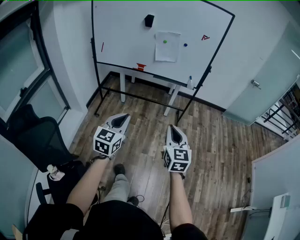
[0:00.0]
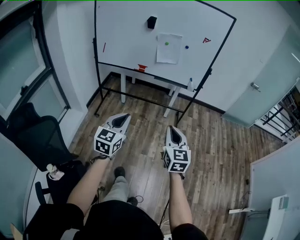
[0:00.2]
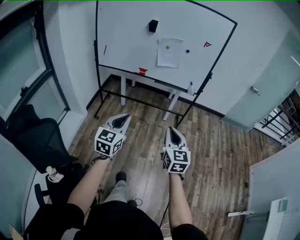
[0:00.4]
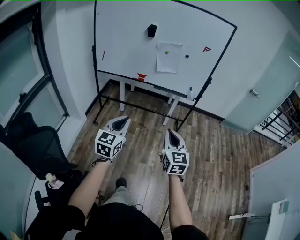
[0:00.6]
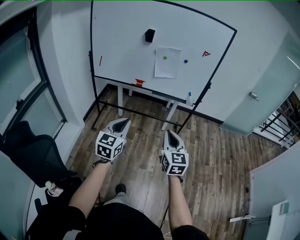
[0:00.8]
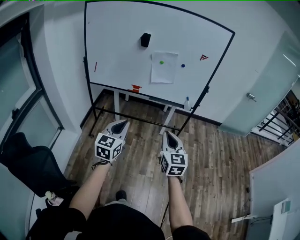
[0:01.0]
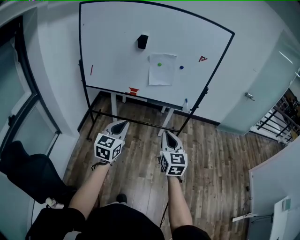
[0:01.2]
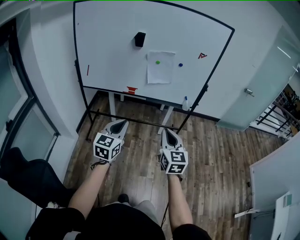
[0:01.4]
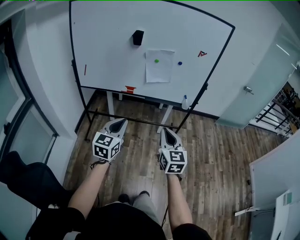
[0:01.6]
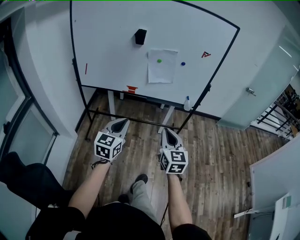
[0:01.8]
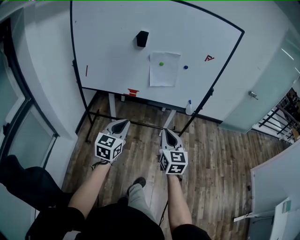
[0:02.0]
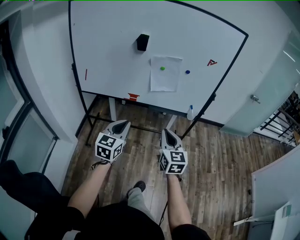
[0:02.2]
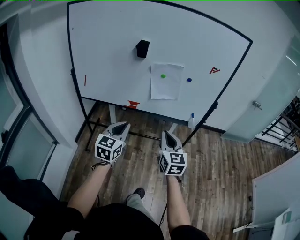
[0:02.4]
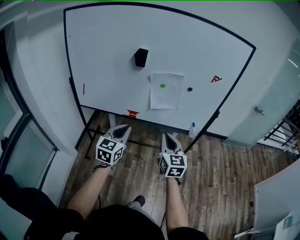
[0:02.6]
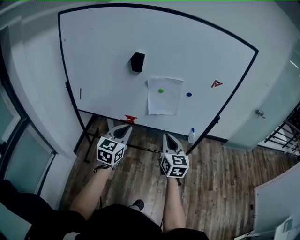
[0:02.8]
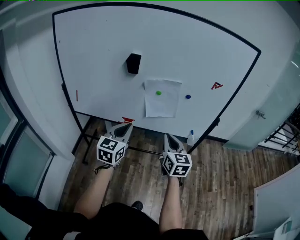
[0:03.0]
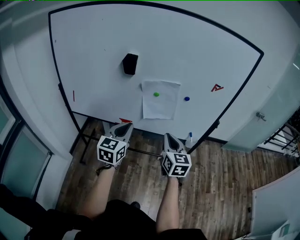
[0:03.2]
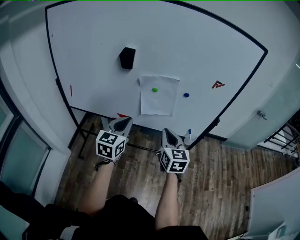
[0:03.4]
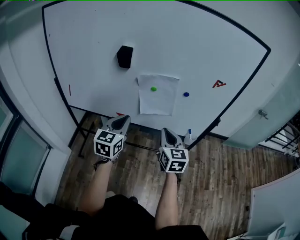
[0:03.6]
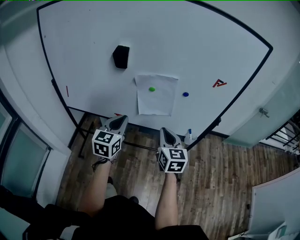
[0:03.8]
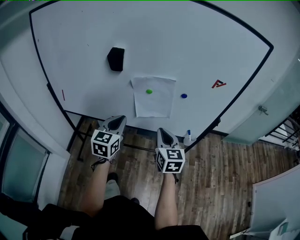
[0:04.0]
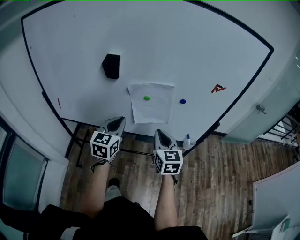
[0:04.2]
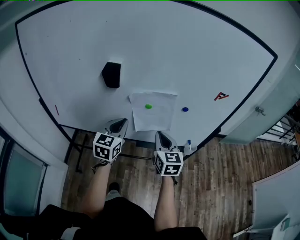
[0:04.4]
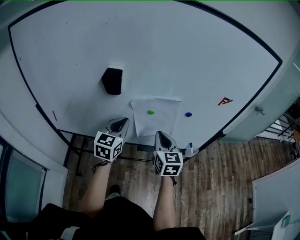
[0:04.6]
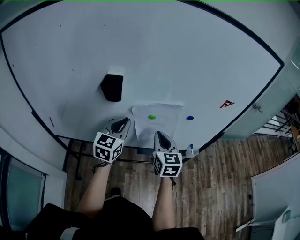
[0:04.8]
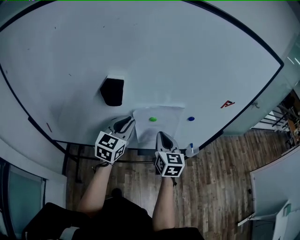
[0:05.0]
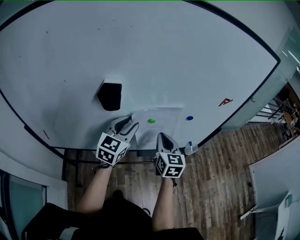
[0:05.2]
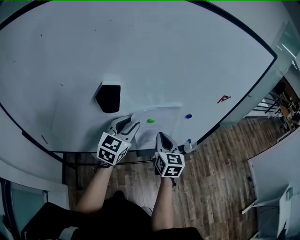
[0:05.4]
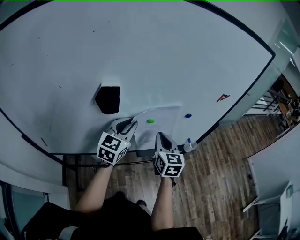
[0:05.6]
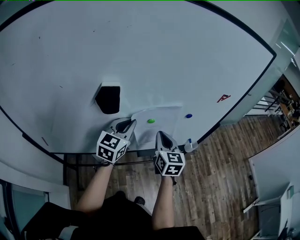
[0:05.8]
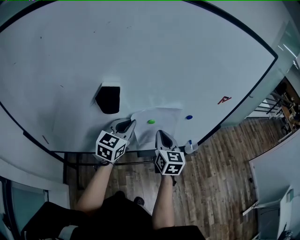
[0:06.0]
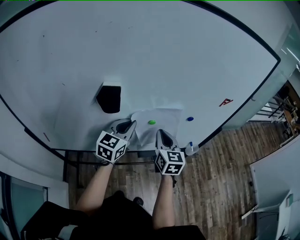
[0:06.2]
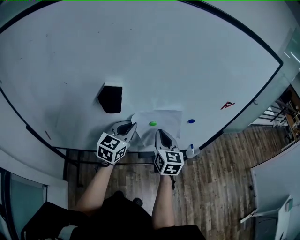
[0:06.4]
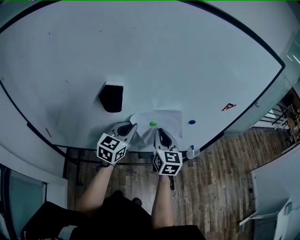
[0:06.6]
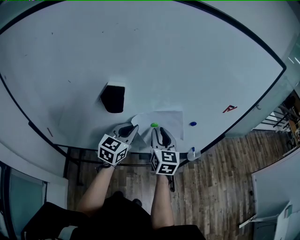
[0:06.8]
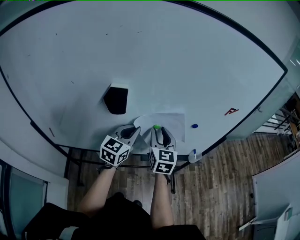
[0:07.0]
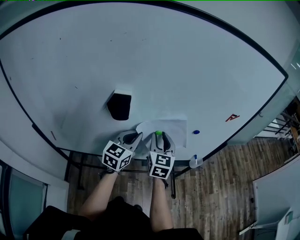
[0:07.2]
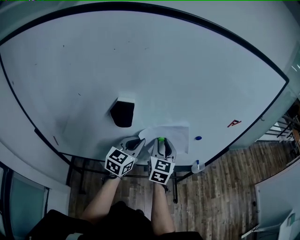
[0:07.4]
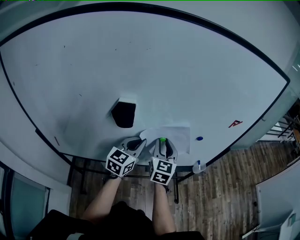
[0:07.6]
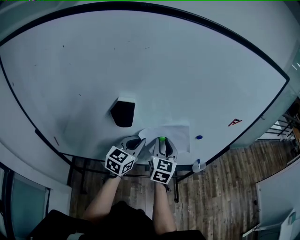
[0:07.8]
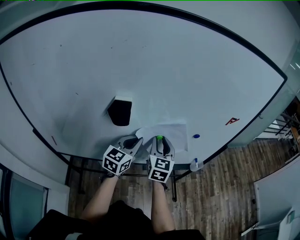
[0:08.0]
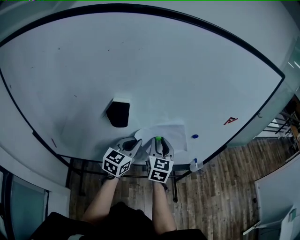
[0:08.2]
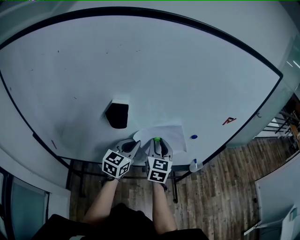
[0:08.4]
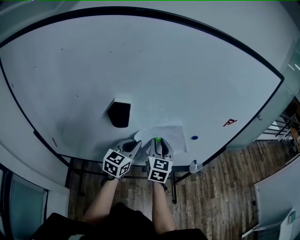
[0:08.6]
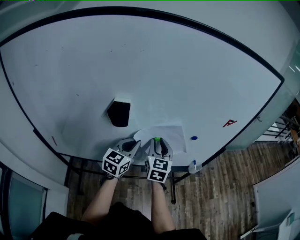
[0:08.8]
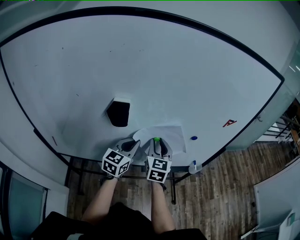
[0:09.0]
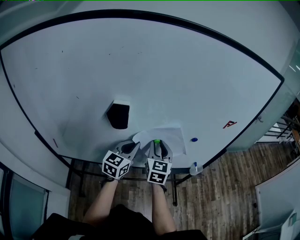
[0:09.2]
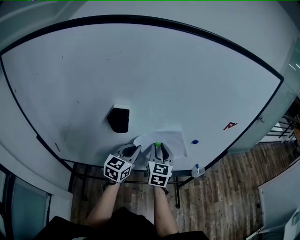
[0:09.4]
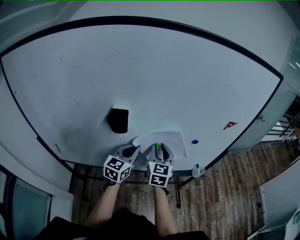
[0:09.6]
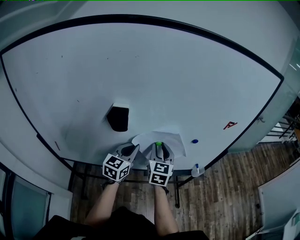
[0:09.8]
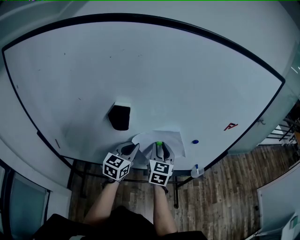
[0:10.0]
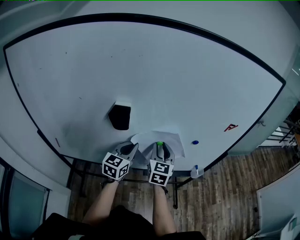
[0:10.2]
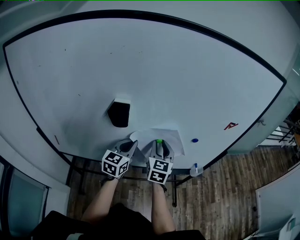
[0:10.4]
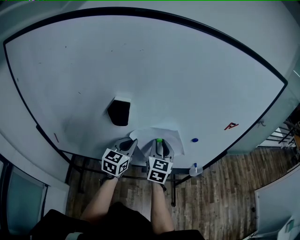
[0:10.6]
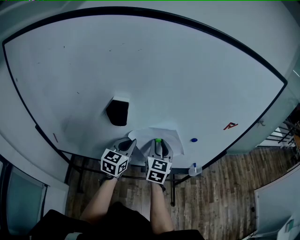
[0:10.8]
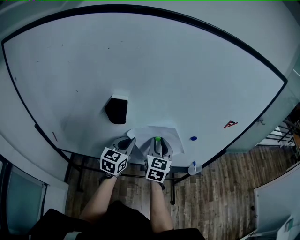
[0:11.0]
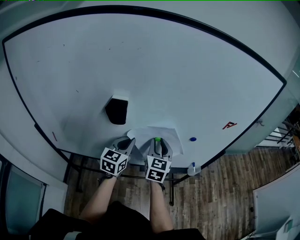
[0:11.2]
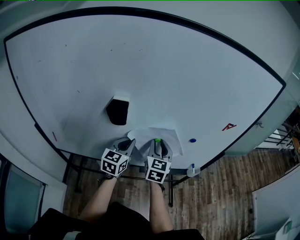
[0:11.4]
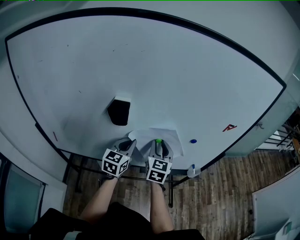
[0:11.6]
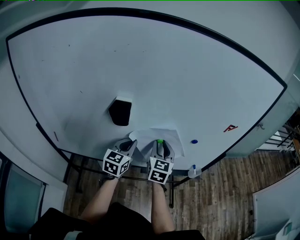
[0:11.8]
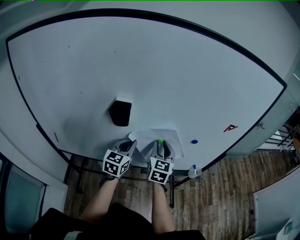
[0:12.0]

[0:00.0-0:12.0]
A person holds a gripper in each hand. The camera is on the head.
0:00.0 to 0:01.6: The left gripper is displaced forward by some 25 cm, while the right gripper is displaced forward and to the left by roughly 25 cm.
0:01.6 to 0:03.0: Both grippers move forward, approximately 30 cm.
0:03.0 to 0:04.4: Both grippers move forward, some 20 cm.
0:04.4 to 0:06.0: Both grippers move forward, approximately 10 cm. The left gripper rotates roughly 20 degrees, and opens, then closes once more.
0:06.0 to 0:07.6: The right gripper changes place by roughly 5 cm, and opens.
0:07.6 to 0:09.0: Both grippers stay put.
0:09.0 to 0:10.4: There are only small adjustments of the grippers.
0:10.4 to 0:12.0: The two grippers keep their place.

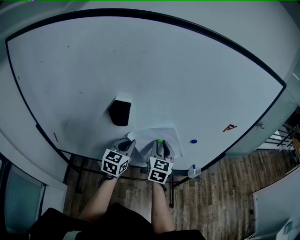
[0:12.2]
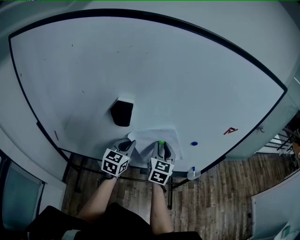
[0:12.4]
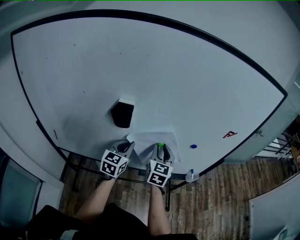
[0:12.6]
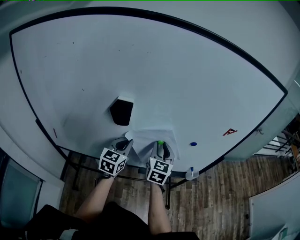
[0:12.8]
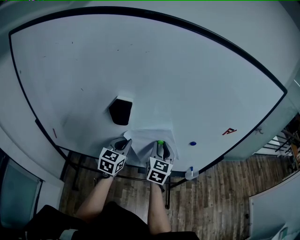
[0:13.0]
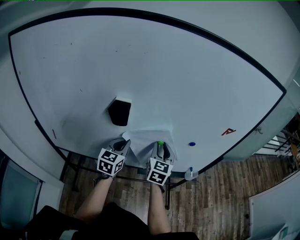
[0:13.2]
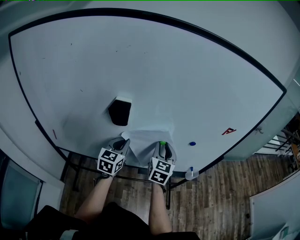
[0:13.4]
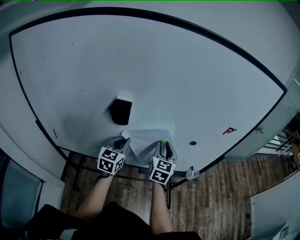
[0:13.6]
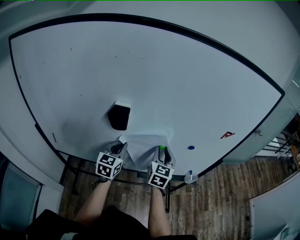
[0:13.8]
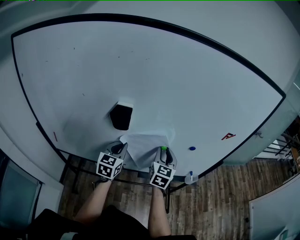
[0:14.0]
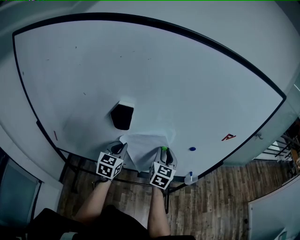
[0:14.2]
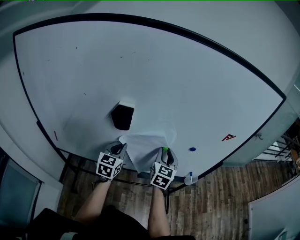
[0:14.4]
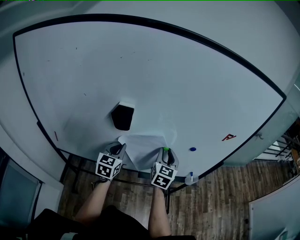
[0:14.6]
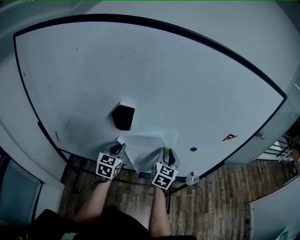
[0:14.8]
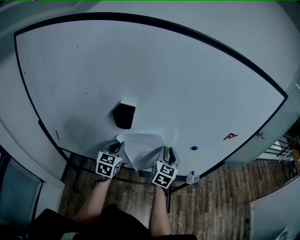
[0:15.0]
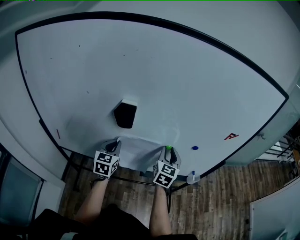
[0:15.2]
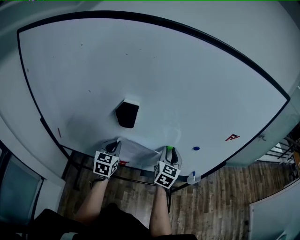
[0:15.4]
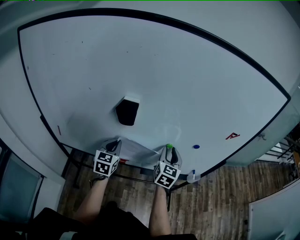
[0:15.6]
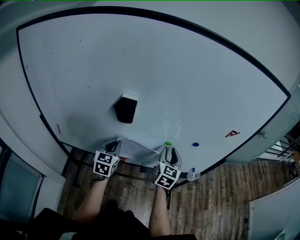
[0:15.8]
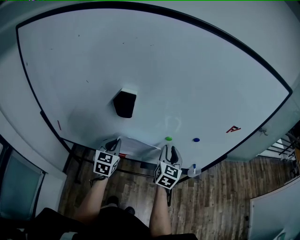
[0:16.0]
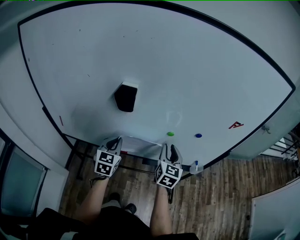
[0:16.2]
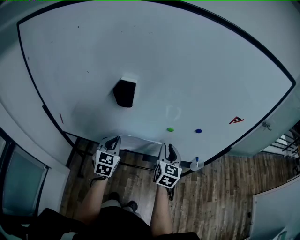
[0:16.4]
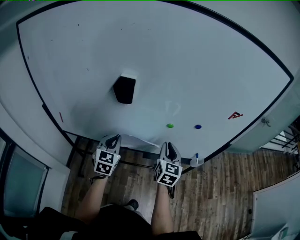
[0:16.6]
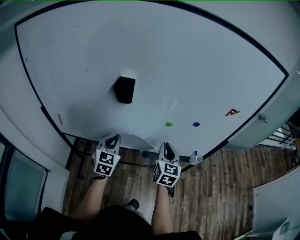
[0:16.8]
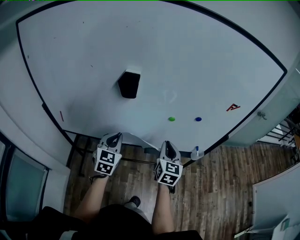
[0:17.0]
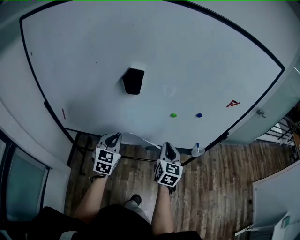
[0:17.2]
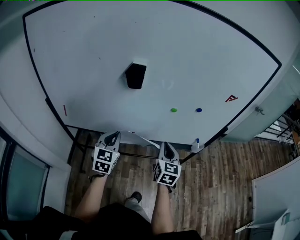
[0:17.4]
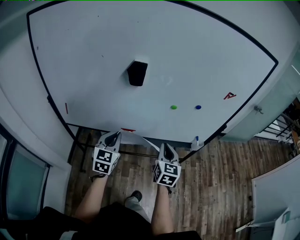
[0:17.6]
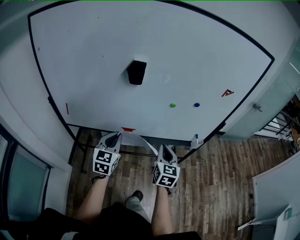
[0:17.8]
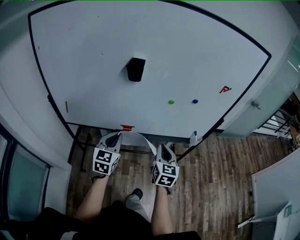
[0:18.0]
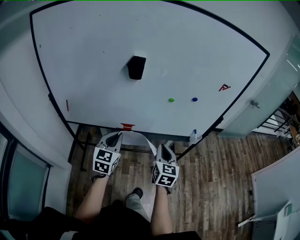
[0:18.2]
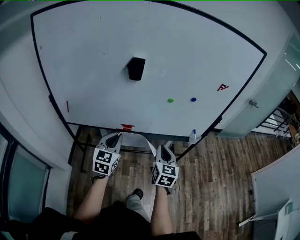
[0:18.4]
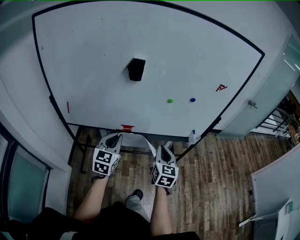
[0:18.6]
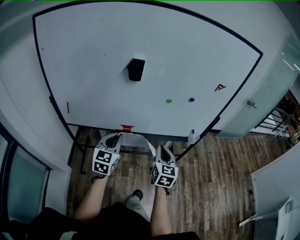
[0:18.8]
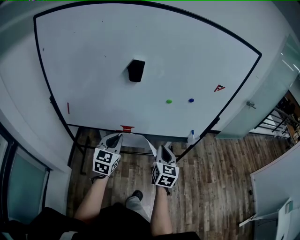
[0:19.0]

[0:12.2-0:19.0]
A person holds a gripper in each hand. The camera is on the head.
0:12.2 to 0:13.6: There are only small adjustments of the grippers.
0:13.6 to 0:15.0: The grippers make only small movements.
0:15.0 to 0:16.2: The right gripper moves some 5 cm. The left gripper moves backward, approximately 5 cm.
0:16.2 to 0:17.6: Both grippers travel together backward, some 15 cm. The right gripper closes.
0:17.6 to 0:19.0: The two grippers go approximately 5 cm backward.

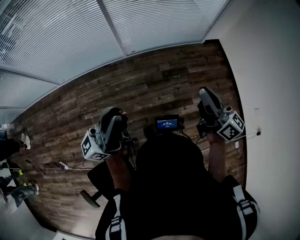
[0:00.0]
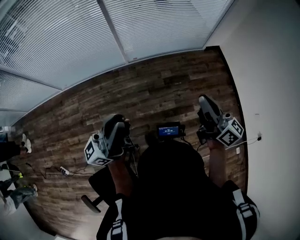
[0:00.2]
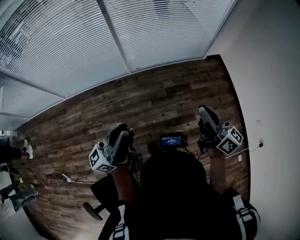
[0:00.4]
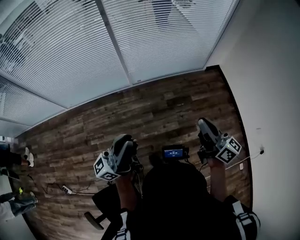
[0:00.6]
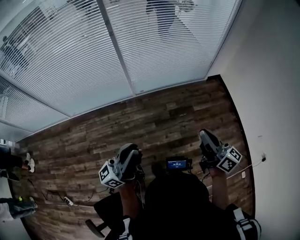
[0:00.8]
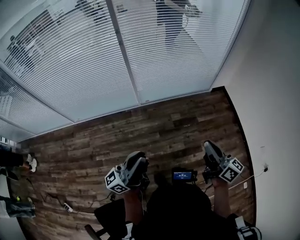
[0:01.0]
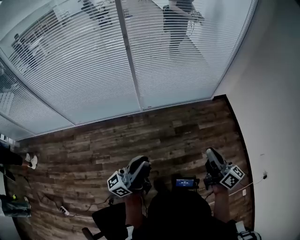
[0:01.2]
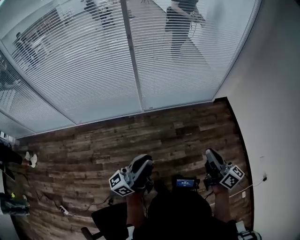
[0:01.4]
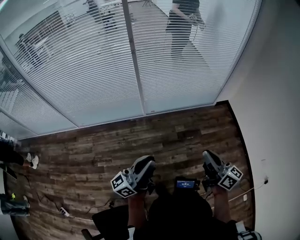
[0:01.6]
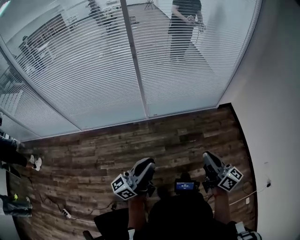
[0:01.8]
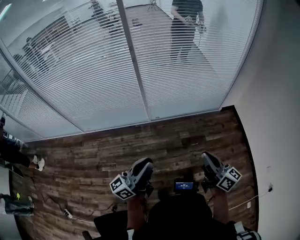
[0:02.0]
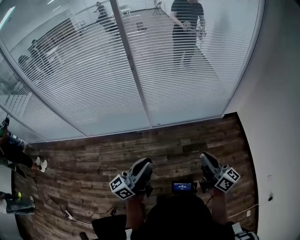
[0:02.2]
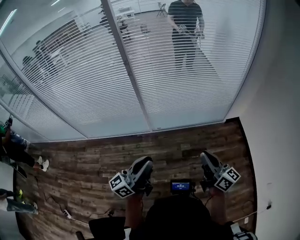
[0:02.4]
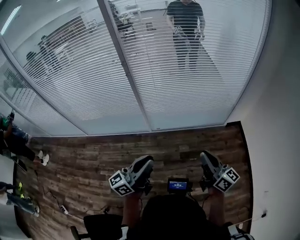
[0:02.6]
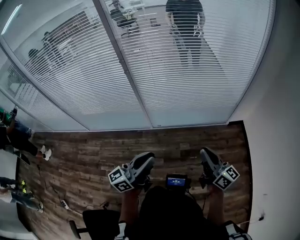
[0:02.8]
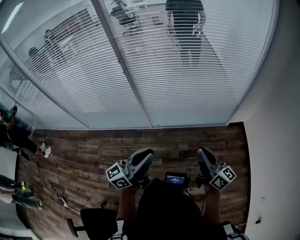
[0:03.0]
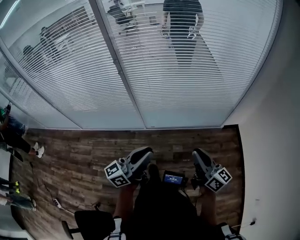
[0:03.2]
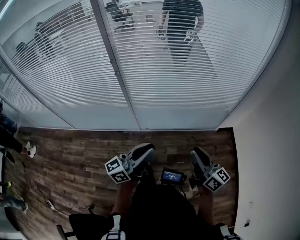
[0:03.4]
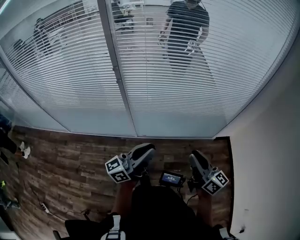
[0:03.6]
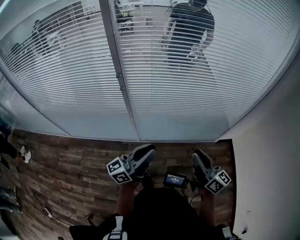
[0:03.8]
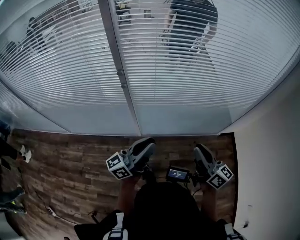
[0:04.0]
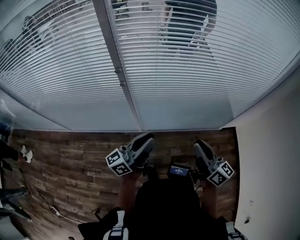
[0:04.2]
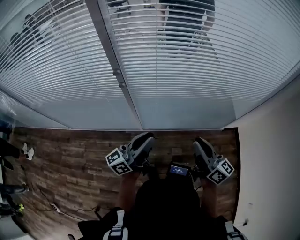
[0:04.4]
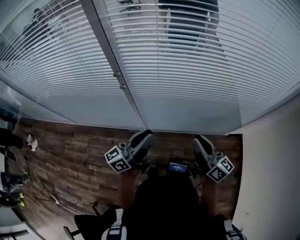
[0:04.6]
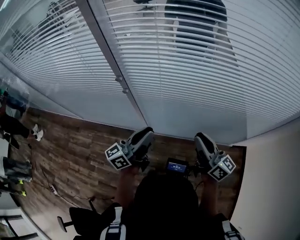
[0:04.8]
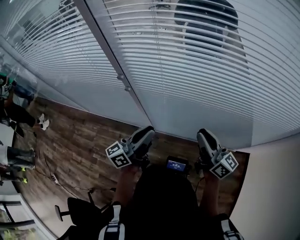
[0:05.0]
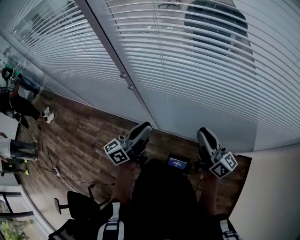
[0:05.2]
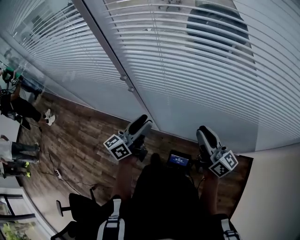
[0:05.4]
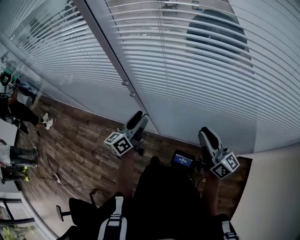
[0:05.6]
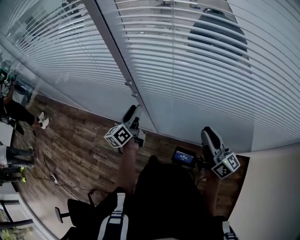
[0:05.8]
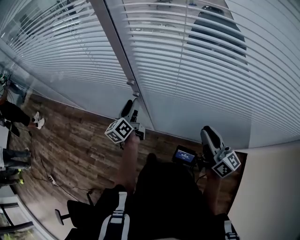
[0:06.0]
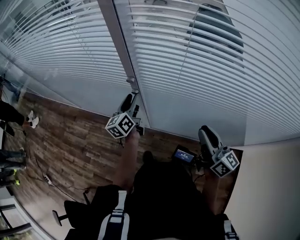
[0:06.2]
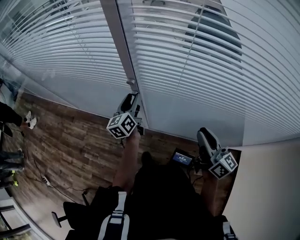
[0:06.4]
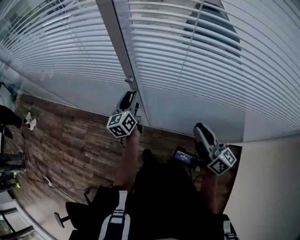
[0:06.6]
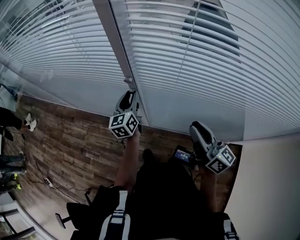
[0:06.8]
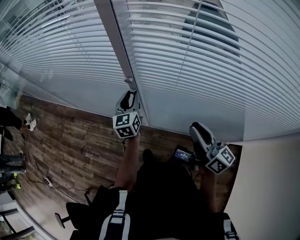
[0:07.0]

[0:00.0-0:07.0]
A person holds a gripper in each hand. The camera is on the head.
0:00.0 to 0:01.4: The right gripper moves some 5 cm.
0:01.4 to 0:02.8: The grippers both shift forward and to the right by about 25 cm.
0:02.8 to 0:04.2: Both grippers move forward and to the left, approximately 30 cm.
0:04.2 to 0:05.6: The left gripper shifts by some 20 cm, rotates roughly 40 degrees, and opens its fingers. The right gripper ends up roughly 20 cm from where it was.
0:05.6 to 0:07.0: The left gripper heads forward and downward, covering approximately 10 cm, and changes its angle by some 40 degrees. The right gripper heads to the left, covering approximately 10 cm.
